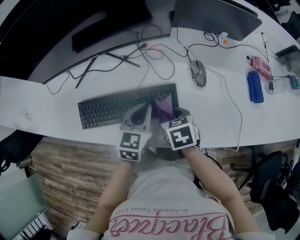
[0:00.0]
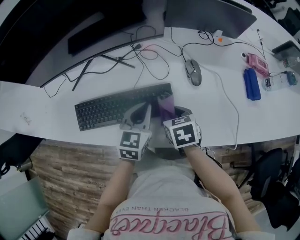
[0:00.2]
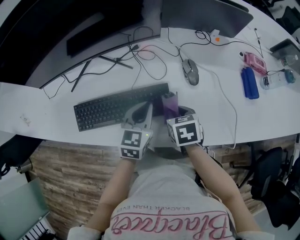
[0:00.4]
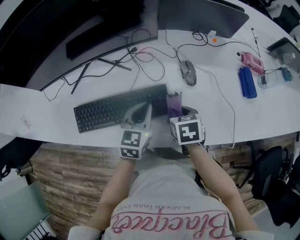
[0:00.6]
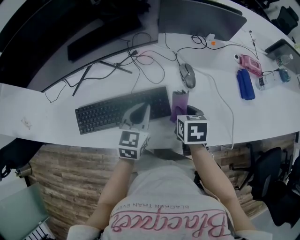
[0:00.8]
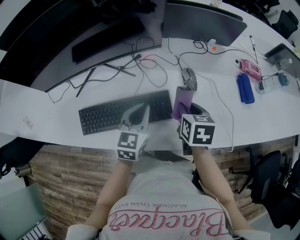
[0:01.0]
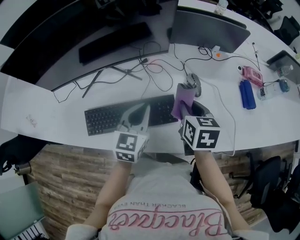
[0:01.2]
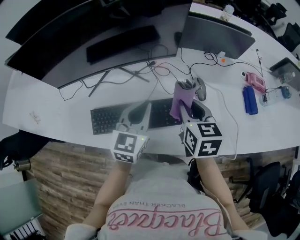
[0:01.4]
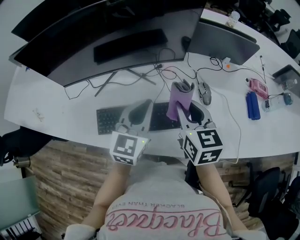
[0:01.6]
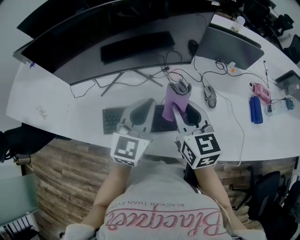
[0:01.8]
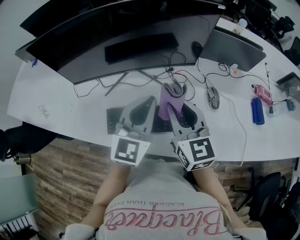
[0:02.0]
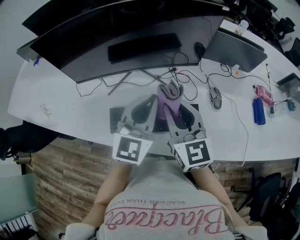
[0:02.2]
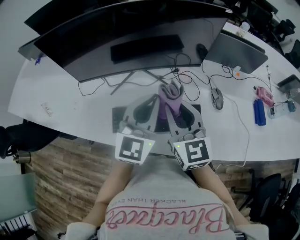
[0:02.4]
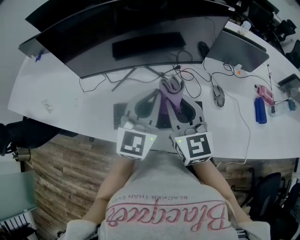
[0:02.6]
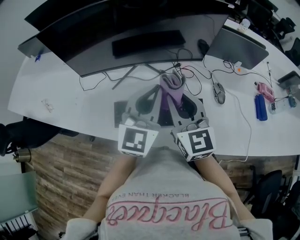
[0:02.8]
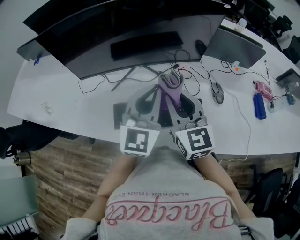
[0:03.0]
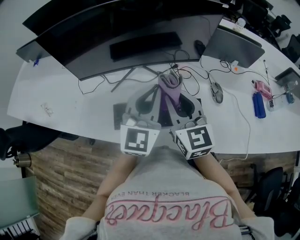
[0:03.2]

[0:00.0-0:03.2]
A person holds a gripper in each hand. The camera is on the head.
0:00.0 to 0:01.6: The grippers both shift upward by approximately 15 cm. The right gripper angles its fingers upward, by approximately 30 degrees.
0:01.6 to 0:03.2: The right gripper is displaced to the left by approximately 15 cm, and rotates roughly 20 degrees. The left gripper heads to the left and upward, covering some 10 cm.

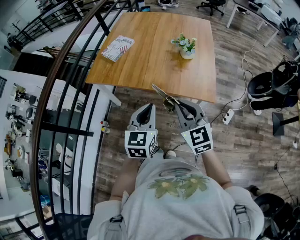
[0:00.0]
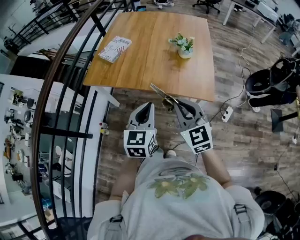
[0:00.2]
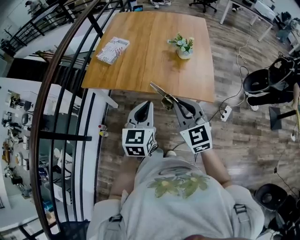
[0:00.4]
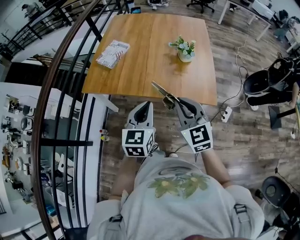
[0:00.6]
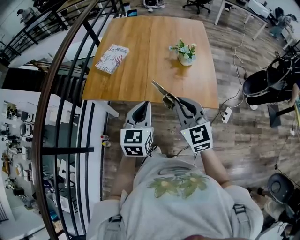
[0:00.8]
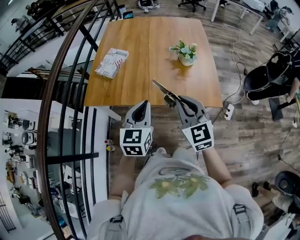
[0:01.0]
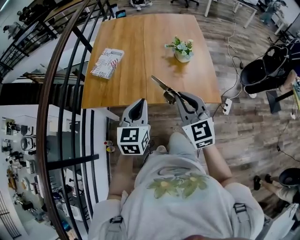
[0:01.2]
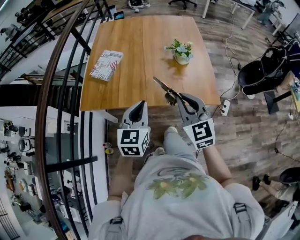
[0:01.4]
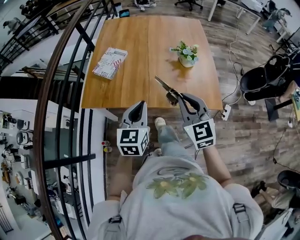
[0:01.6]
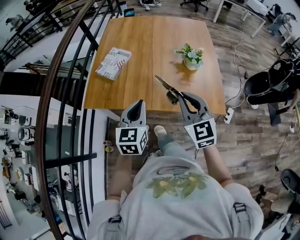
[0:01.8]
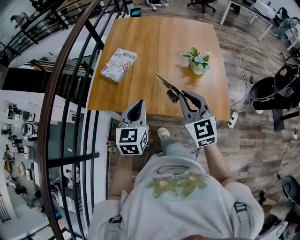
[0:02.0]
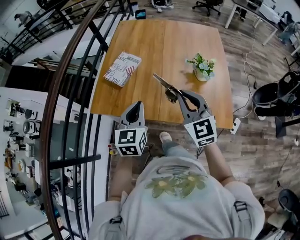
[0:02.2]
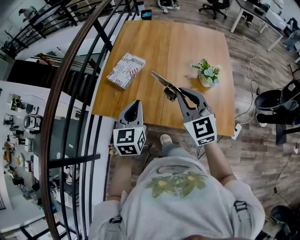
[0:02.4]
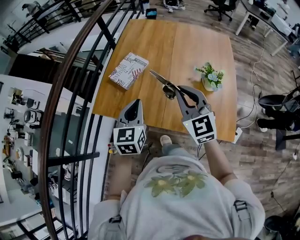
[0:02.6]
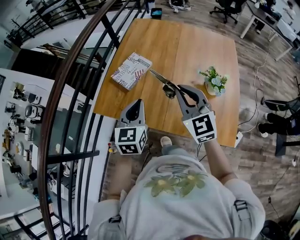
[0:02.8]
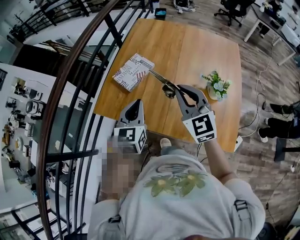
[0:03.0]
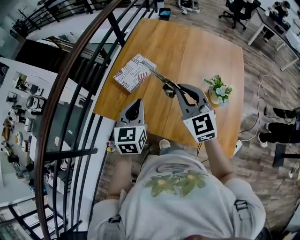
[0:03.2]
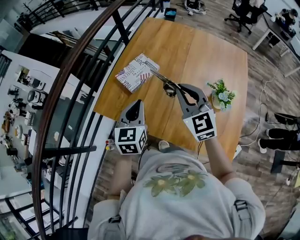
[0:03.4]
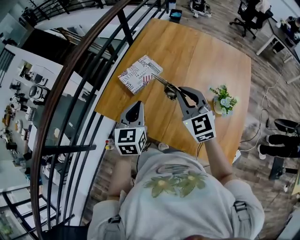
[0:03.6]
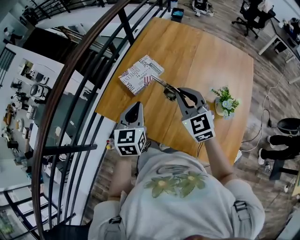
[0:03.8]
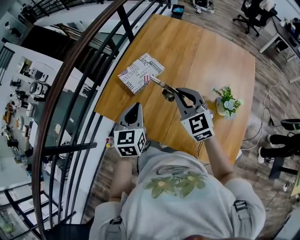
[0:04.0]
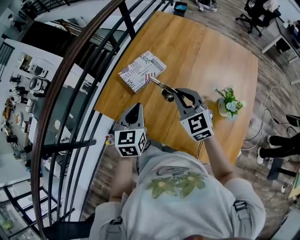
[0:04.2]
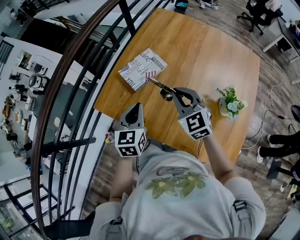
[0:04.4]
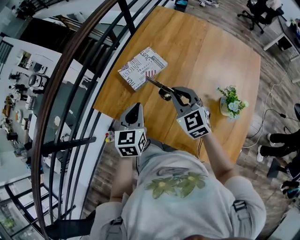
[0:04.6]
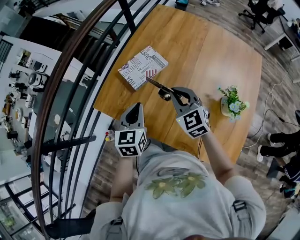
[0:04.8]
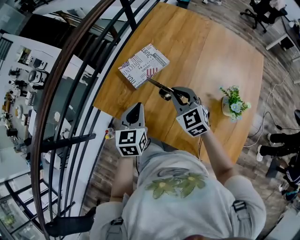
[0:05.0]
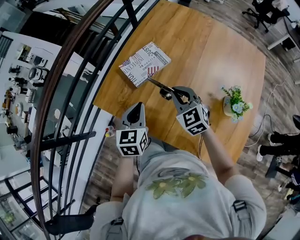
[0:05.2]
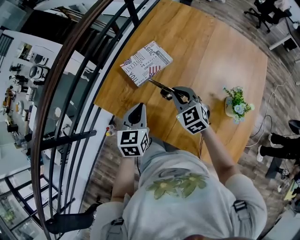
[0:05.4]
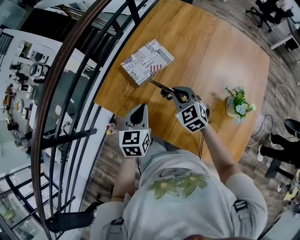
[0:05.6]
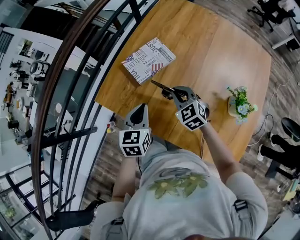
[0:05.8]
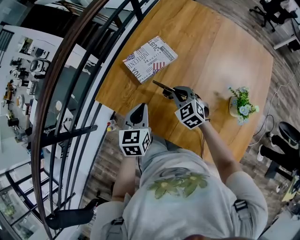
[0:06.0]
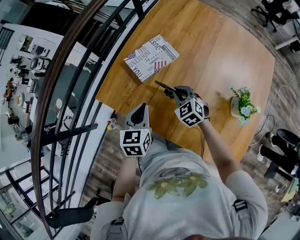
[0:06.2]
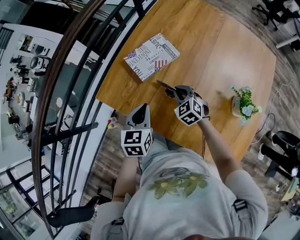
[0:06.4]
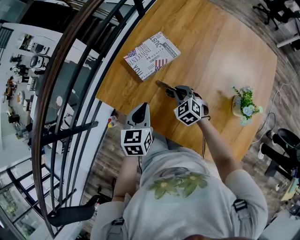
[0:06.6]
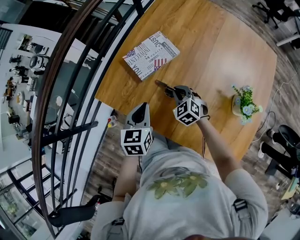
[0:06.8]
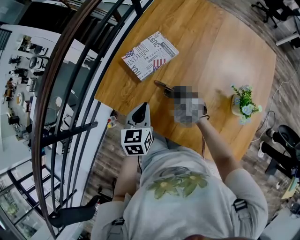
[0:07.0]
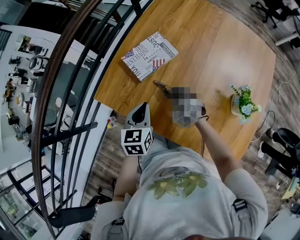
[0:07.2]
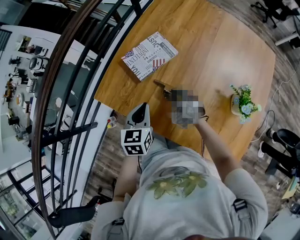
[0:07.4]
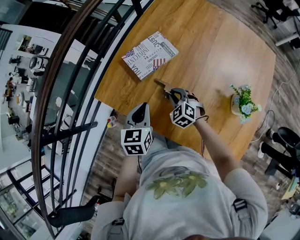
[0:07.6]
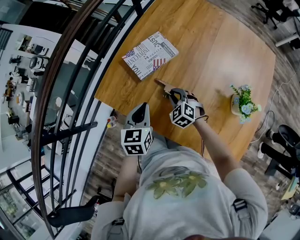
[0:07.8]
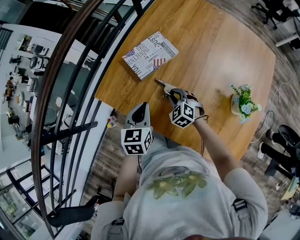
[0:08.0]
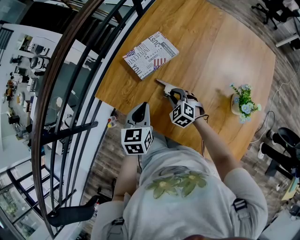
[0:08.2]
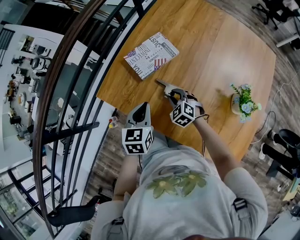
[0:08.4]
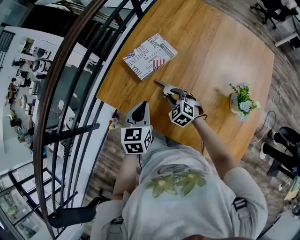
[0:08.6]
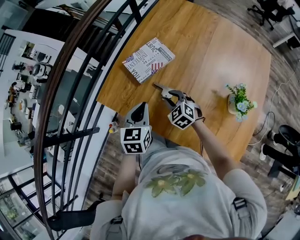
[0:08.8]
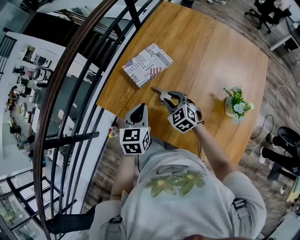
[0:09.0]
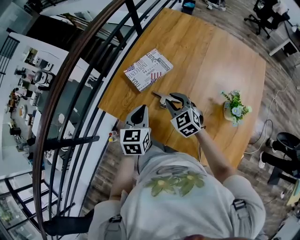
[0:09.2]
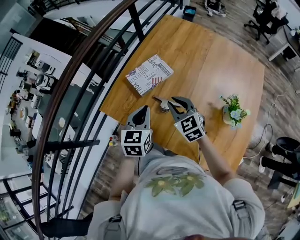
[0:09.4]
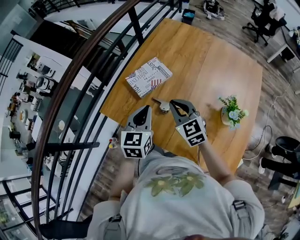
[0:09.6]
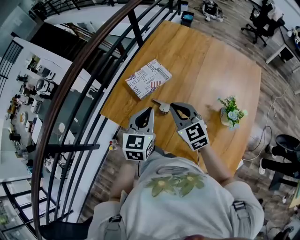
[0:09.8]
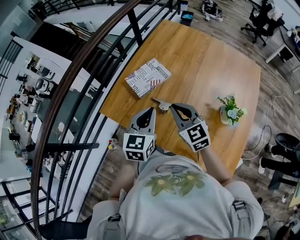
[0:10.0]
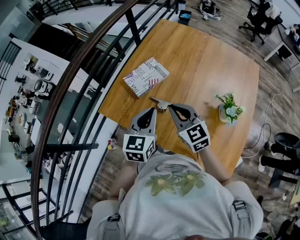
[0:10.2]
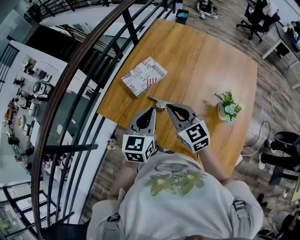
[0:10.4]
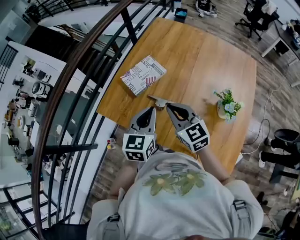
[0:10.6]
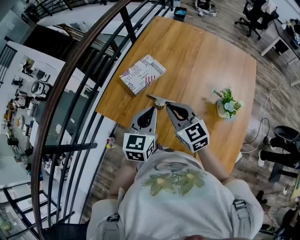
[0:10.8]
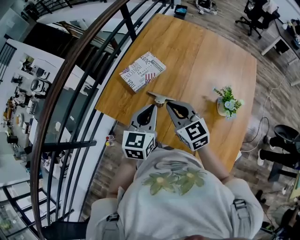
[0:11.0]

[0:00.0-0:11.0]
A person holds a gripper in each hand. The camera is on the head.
0:00.0 to 0:01.6: Both grippers travel together forward and to the left, roughly 15 cm.
0:01.6 to 0:03.2: Both grippers travel together forward, about 20 cm. The right gripper changes its angle by approximately 20 degrees; the left gripper turns by approximately 20 degrees.
0:03.2 to 0:04.8: The left gripper heads downward, covering approximately 5 cm, while the right gripper shifts about 15 cm downward and forward.
0:04.8 to 0:06.2: The left gripper travels downward by some 5 cm; the right gripper is displaced downward by about 15 cm.
0:06.2 to 0:07.8: The right gripper goes approximately 5 cm downward.
0:07.8 to 0:09.4: The left gripper shifts approximately 10 cm upward. Meanwhile the right gripper goes some 20 cm upward, and rotates roughly 30 degrees.
0:09.4 to 0:11.0: The left gripper travels to the right by roughly 5 cm, while the right gripper shifts about 10 cm upward and backward.

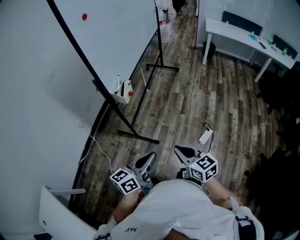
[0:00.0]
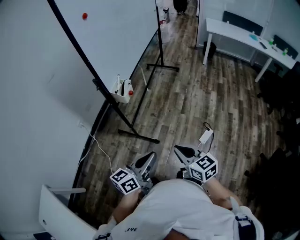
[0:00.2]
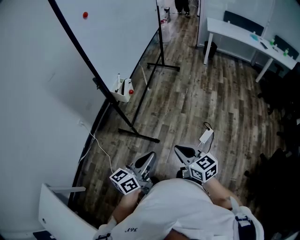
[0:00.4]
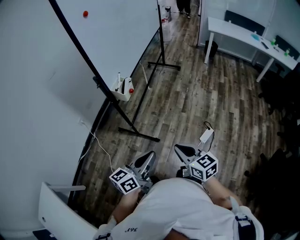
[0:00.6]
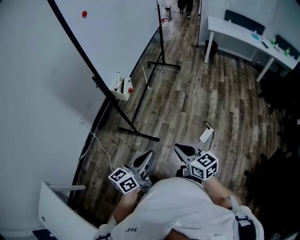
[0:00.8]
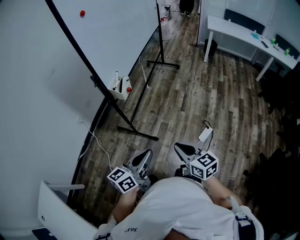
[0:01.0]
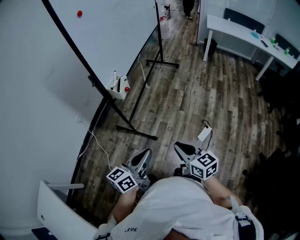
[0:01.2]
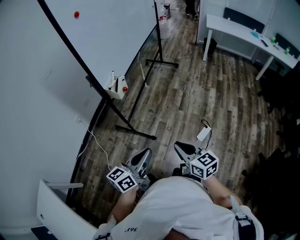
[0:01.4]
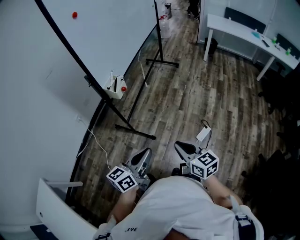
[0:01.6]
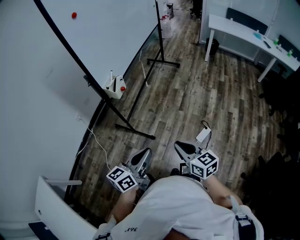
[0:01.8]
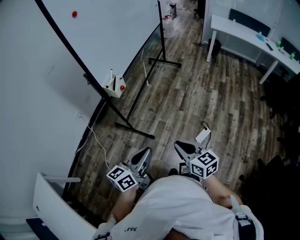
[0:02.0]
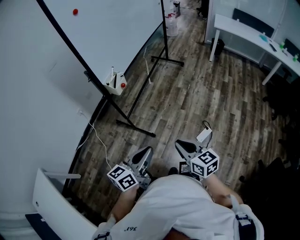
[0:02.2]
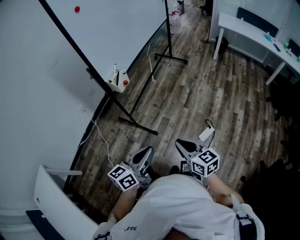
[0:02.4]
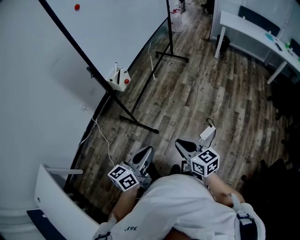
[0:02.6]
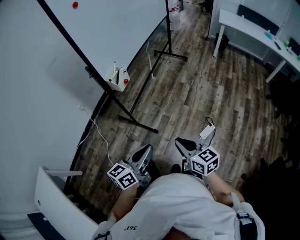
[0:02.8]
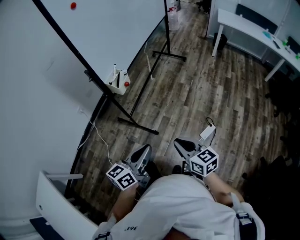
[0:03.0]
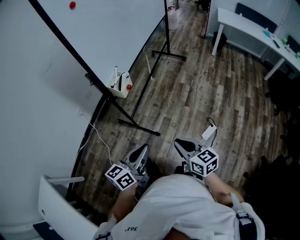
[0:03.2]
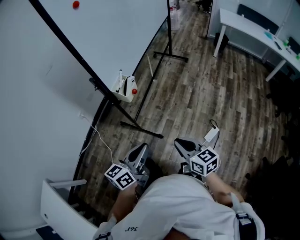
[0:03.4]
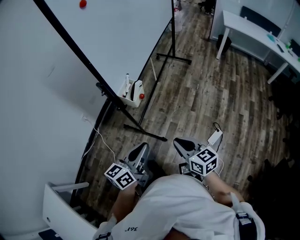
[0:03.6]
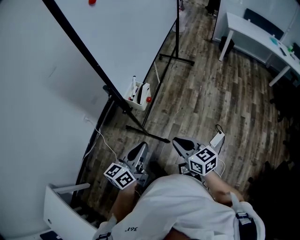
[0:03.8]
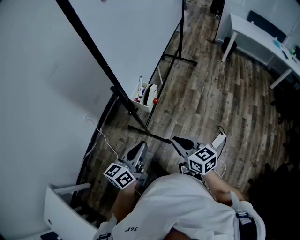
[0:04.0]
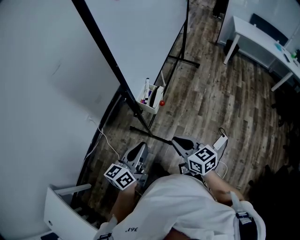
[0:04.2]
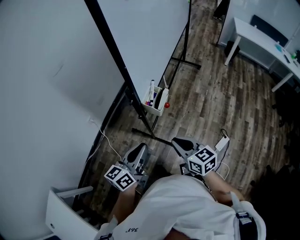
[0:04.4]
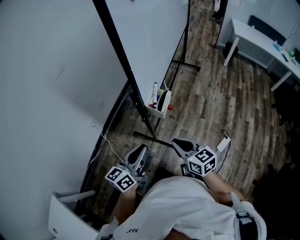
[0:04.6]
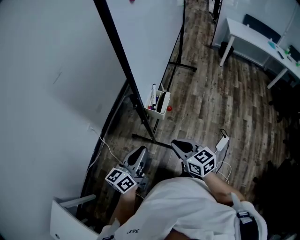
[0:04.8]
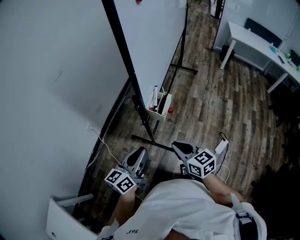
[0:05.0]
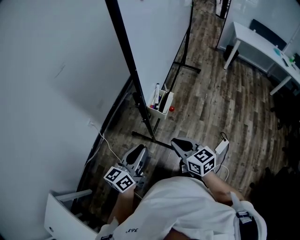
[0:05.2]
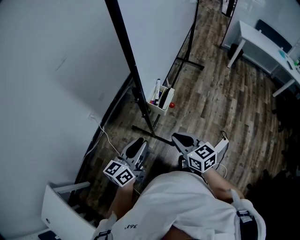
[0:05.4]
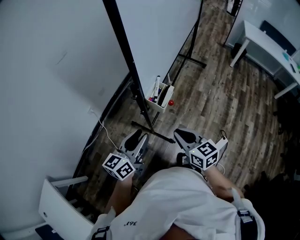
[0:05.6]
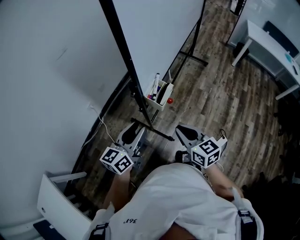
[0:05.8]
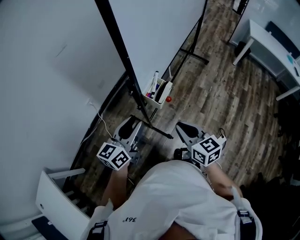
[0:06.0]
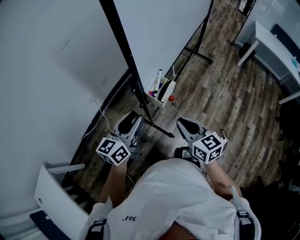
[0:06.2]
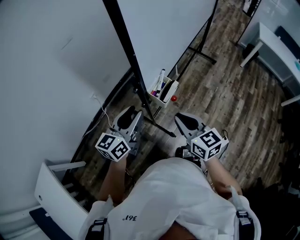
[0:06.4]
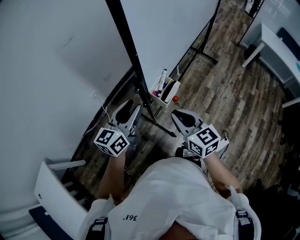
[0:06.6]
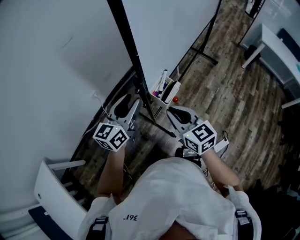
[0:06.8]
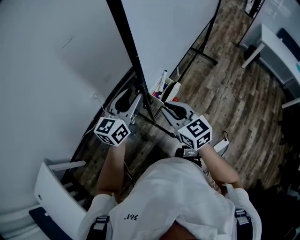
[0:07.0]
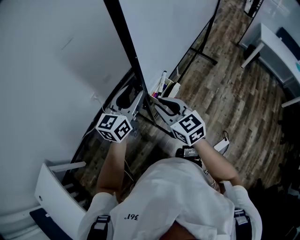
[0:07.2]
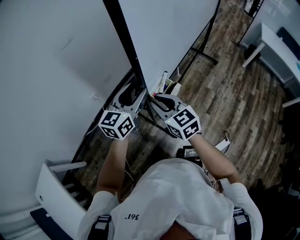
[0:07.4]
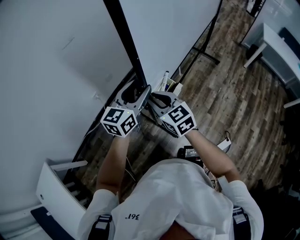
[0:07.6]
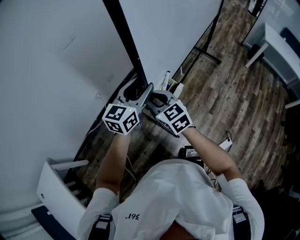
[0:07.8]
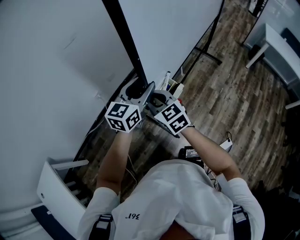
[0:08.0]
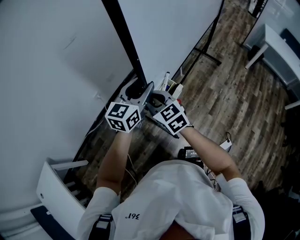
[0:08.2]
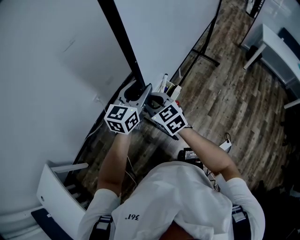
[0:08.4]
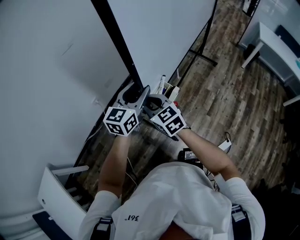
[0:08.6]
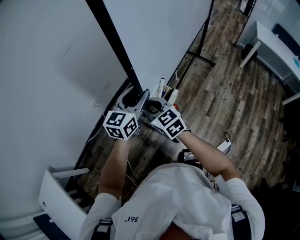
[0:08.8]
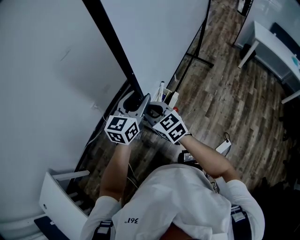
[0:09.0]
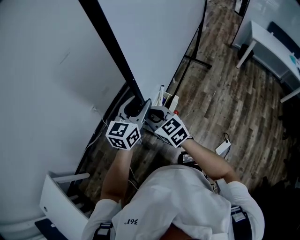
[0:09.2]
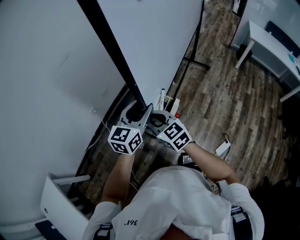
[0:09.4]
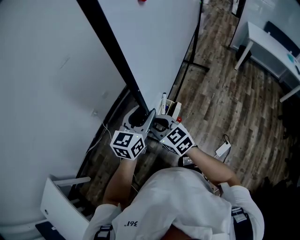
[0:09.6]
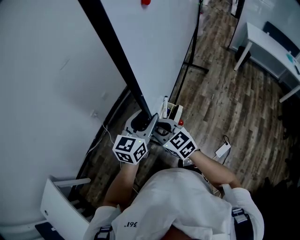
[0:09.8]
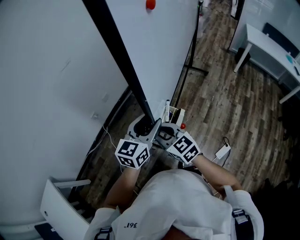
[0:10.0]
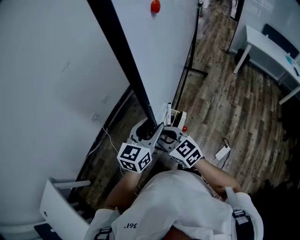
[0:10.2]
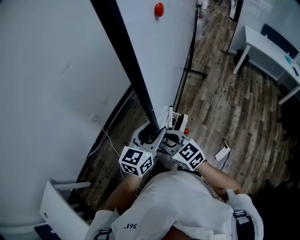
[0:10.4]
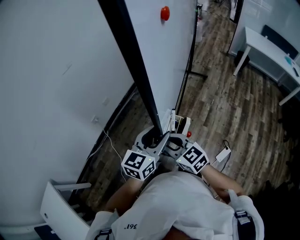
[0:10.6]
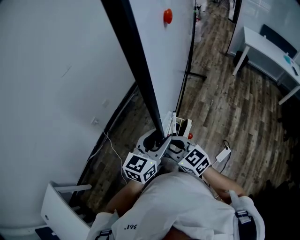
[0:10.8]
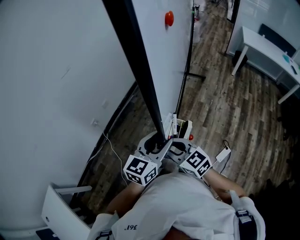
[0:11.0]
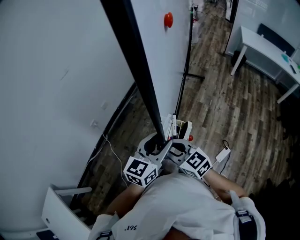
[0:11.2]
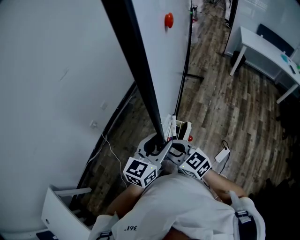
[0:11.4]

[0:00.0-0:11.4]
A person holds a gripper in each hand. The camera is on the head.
0:00.0 to 0:01.4: The grippers move only a little.
0:01.4 to 0:02.8: The grippers stay close to where they were, moving slightly.
0:02.8 to 0:04.2: The two grippers go about 30 cm to the left and forward.
0:04.2 to 0:05.6: The right gripper ends up approximately 5 cm from where it was, while the left gripper changes place by approximately 5 cm, and opens up.
0:05.6 to 0:07.2: The left gripper heads forward, covering about 15 cm; the right gripper travels forward and to the left by approximately 15 cm.
0:07.2 to 0:08.6: The right gripper ends up some 5 cm from where it was.
0:08.6 to 0:10.0: Both grippers travel together backward and to the right, about 15 cm.
0:10.0 to 0:11.4: The grippers both shift backward by roughly 5 cm.
